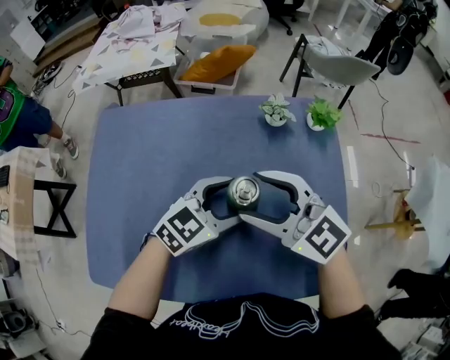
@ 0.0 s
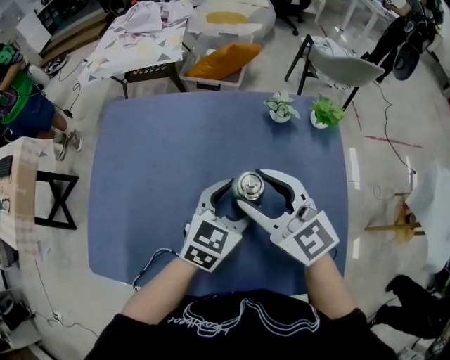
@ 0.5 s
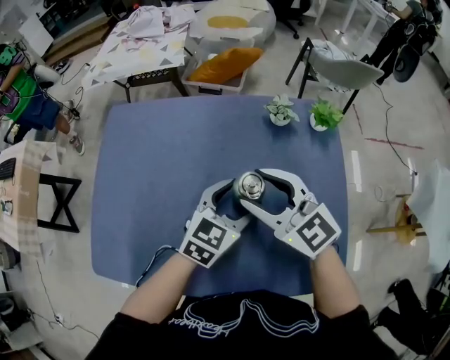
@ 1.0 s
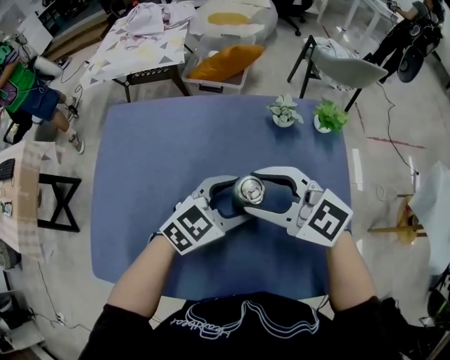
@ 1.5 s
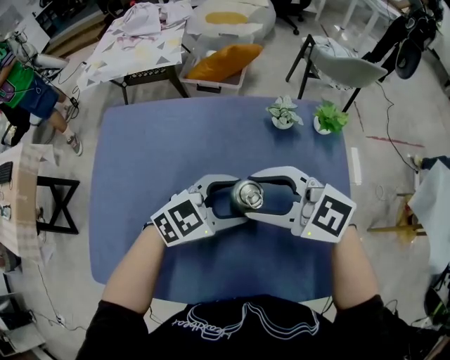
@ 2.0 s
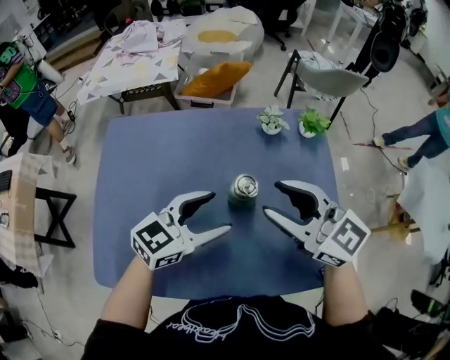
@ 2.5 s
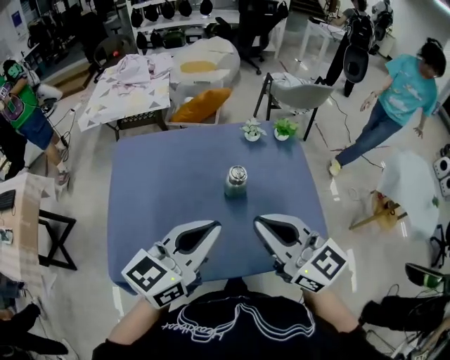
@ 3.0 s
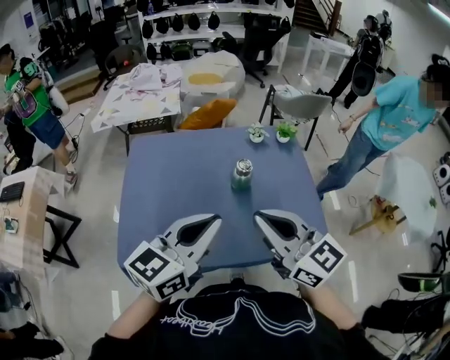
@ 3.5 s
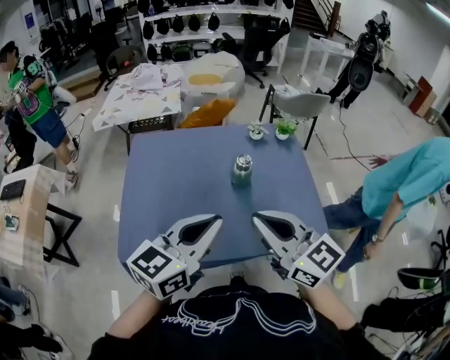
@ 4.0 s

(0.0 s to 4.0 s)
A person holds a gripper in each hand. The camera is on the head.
2.0 s - 4.0 s: The left gripper ends up roughly 35 cm from where it was, changes its angle by approximately 40 degrees, and closes up; the right gripper shifts by about 30 cm, rotates approximately 40 degrees, and closes its fingers.

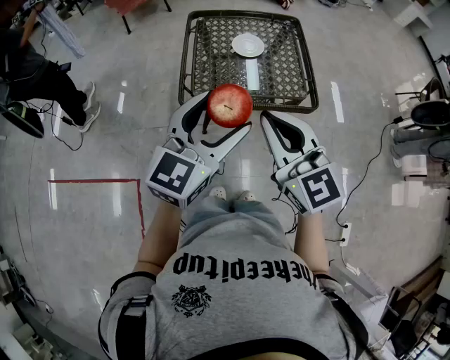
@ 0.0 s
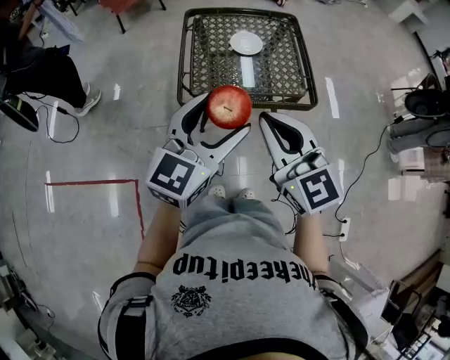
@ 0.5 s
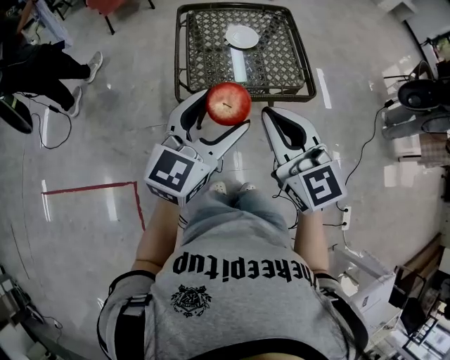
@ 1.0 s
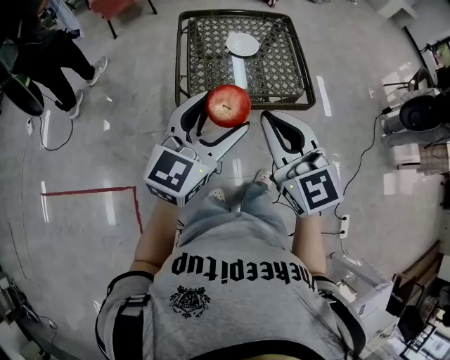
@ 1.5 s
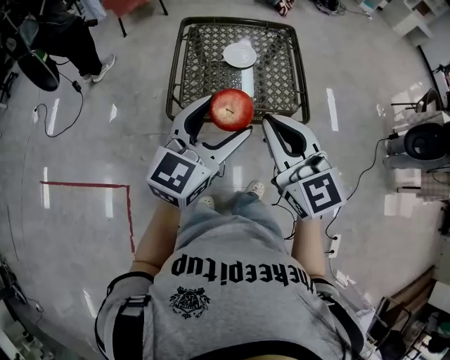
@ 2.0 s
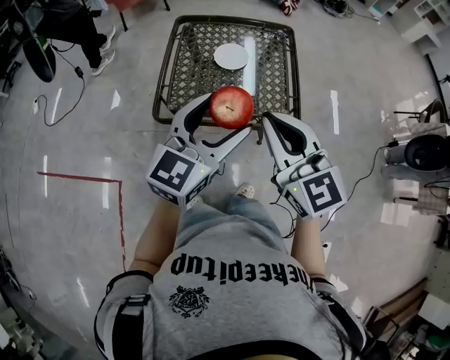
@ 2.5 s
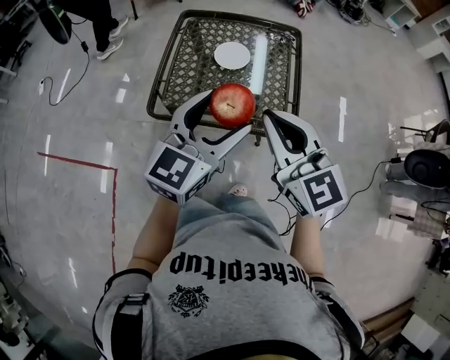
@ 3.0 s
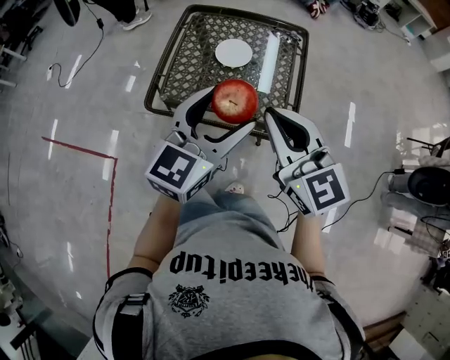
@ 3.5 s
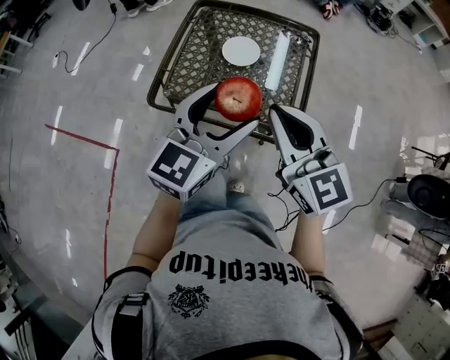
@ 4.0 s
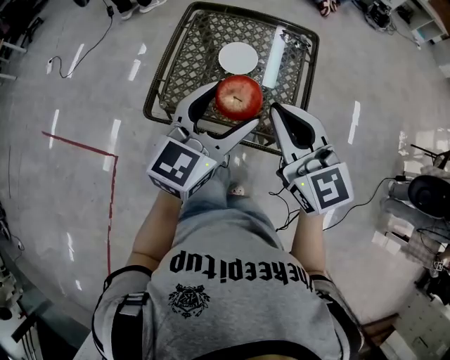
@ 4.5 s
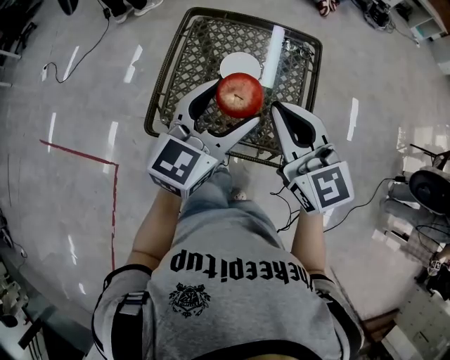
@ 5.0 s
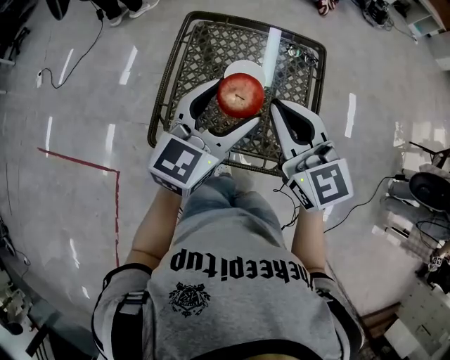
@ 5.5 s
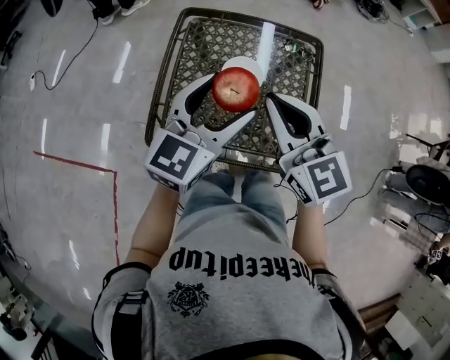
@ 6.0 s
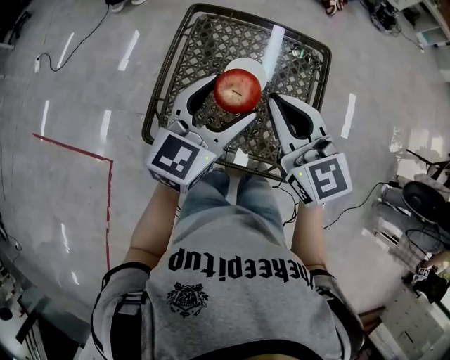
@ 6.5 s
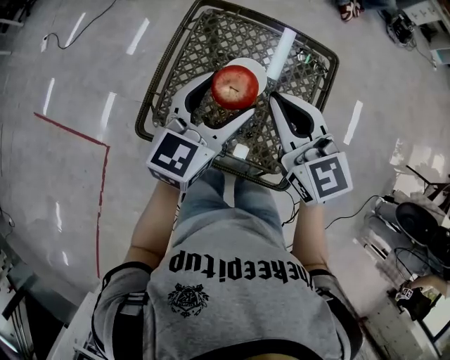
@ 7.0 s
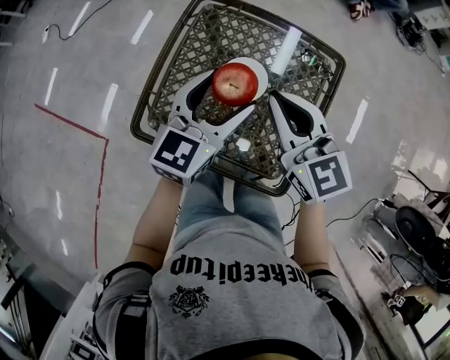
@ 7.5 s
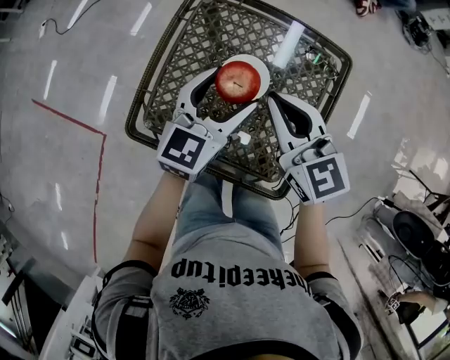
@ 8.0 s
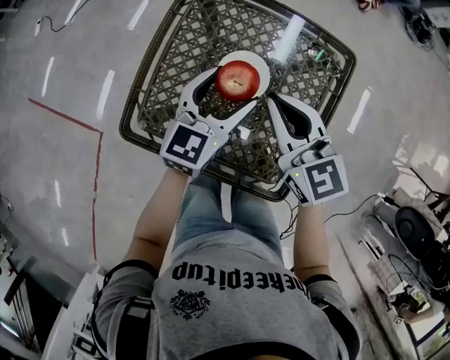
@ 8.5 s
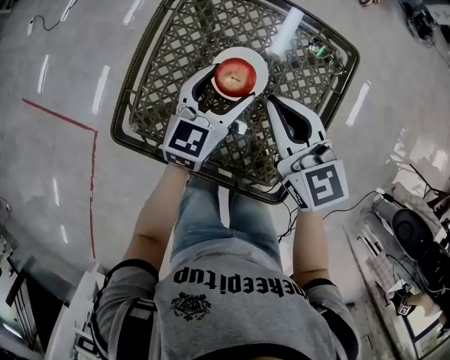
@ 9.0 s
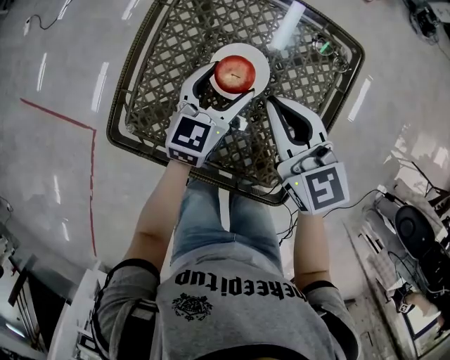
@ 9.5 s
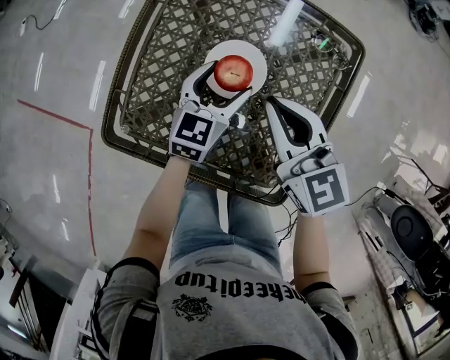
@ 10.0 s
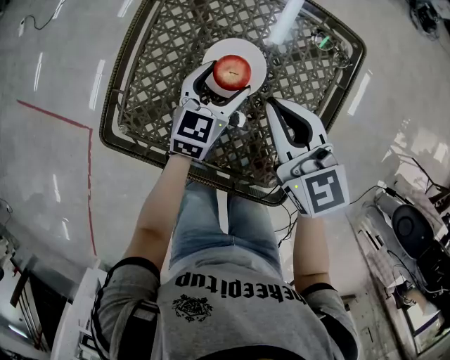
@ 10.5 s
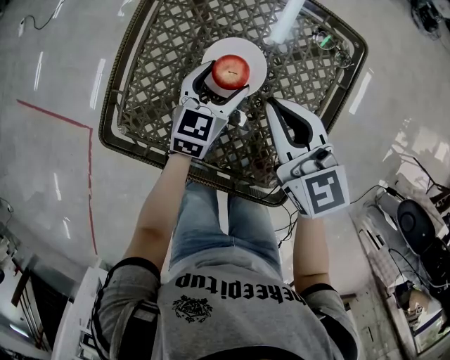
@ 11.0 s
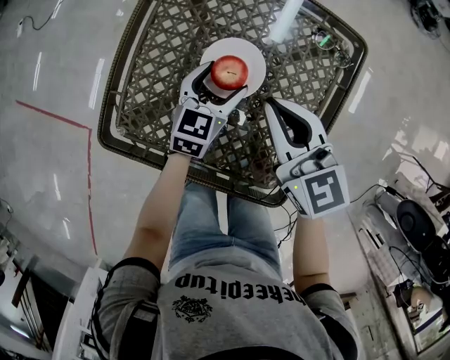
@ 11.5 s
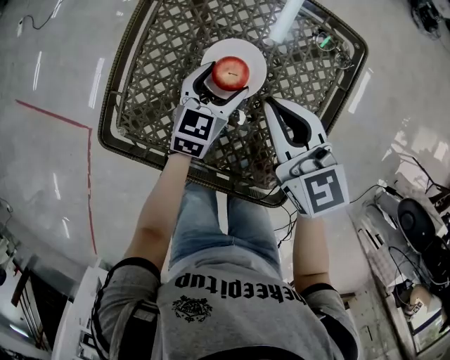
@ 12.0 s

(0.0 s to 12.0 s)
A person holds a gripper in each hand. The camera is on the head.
0.0 s - 2.0 s: The right gripper moves approximately 5 cm. Meanwhile the left gripper ends up roughly 5 cm from where it was.
2.0 s - 4.0 s: Both grippers travel together to the right and forward, some 20 cm.
4.0 s - 6.0 s: The left gripper is displaced forward by roughly 15 cm; the right gripper heads forward and to the left, covering some 20 cm.
6.0 s - 8.0 s: The right gripper moves forward and downward, approximately 15 cm; the left gripper travels downward and forward by approximately 15 cm.
8.0 s - 10.0 s: The left gripper heads downward, covering about 15 cm. Meanwhile the right gripper goes some 10 cm downward.
10.0 s - 12.0 s: The grippers make only small movements.

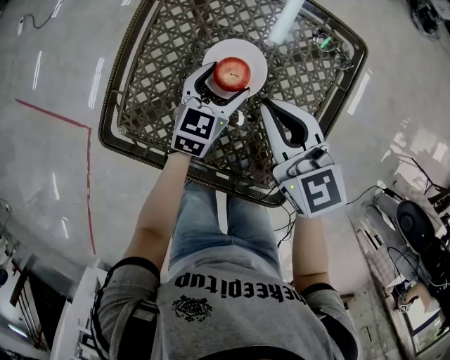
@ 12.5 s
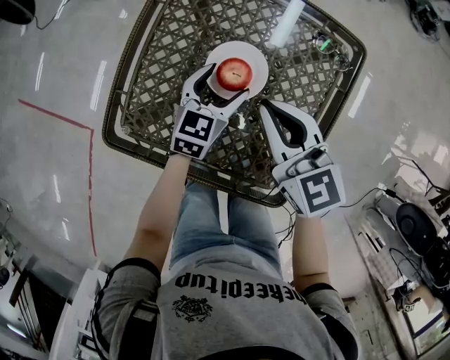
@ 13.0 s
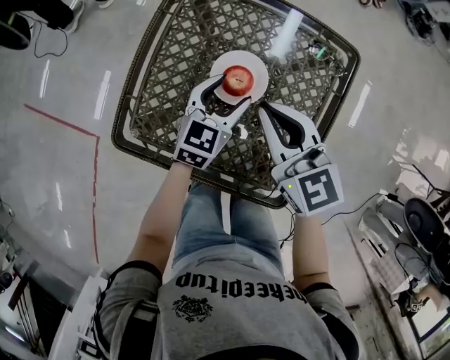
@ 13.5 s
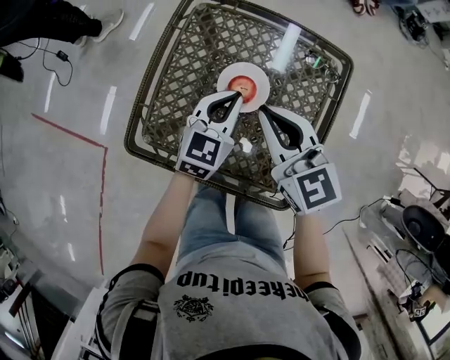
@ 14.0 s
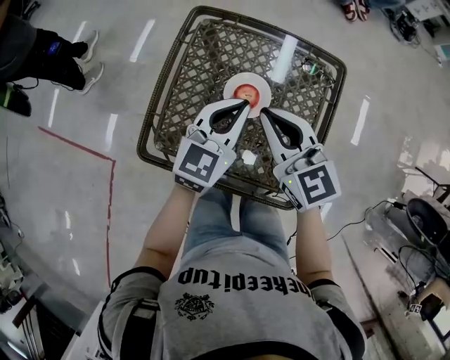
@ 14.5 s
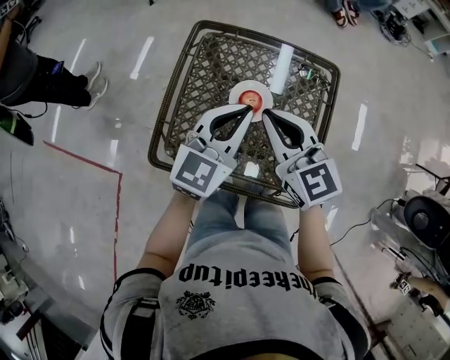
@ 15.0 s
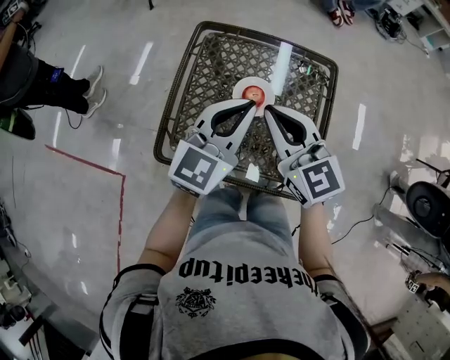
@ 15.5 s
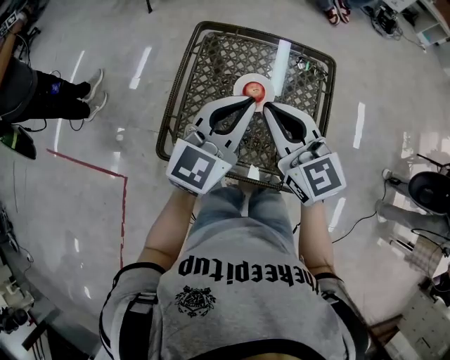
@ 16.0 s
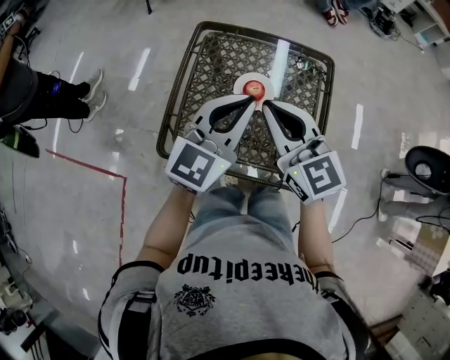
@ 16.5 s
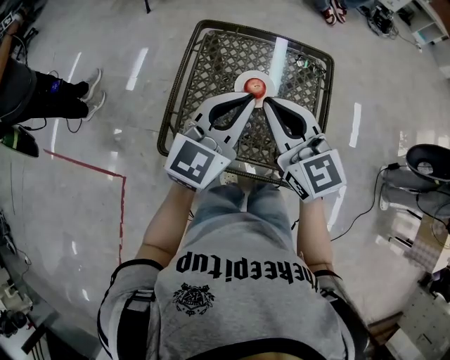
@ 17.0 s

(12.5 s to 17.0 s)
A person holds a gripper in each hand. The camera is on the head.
12.5 s - 14.5 s: The right gripper moves upward, about 10 cm. Meanwhile the left gripper heads upward, covering about 20 cm, and closes.
14.5 s - 17.0 s: Both grippers move upward and backward, some 15 cm.

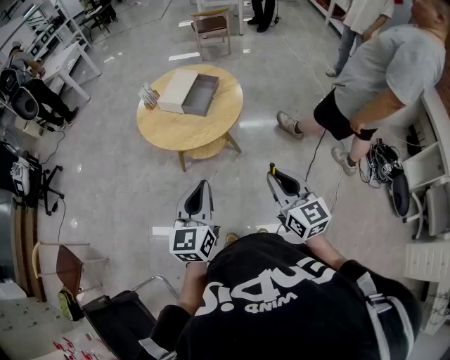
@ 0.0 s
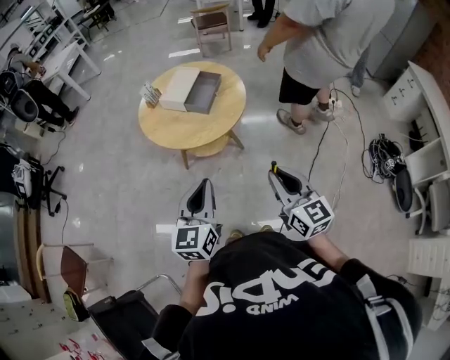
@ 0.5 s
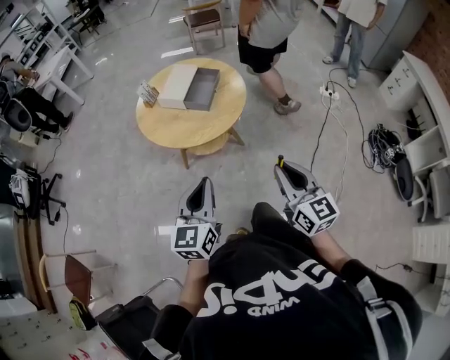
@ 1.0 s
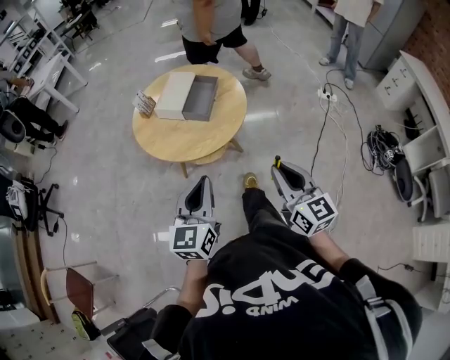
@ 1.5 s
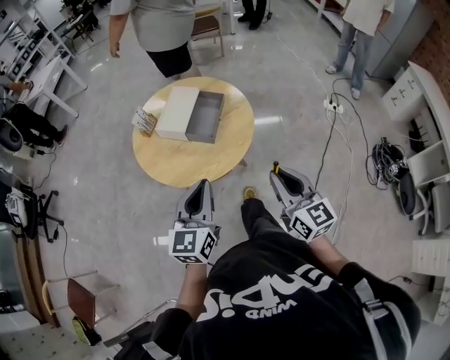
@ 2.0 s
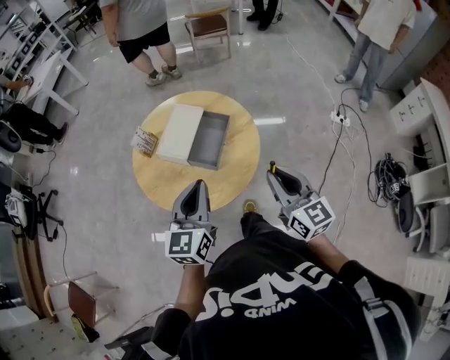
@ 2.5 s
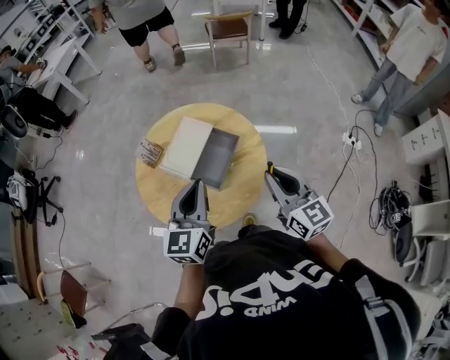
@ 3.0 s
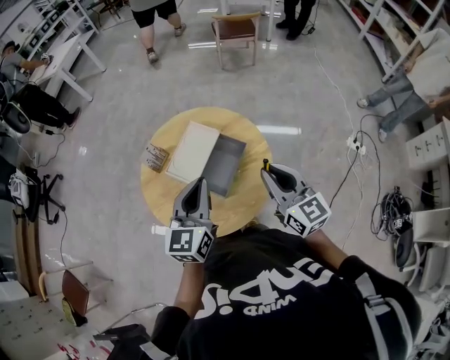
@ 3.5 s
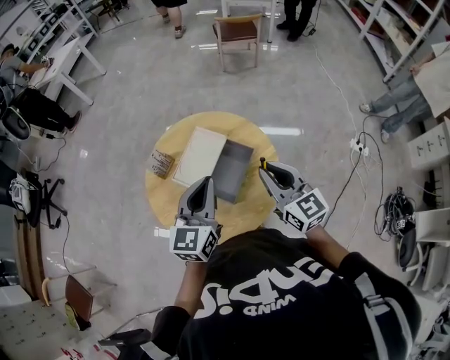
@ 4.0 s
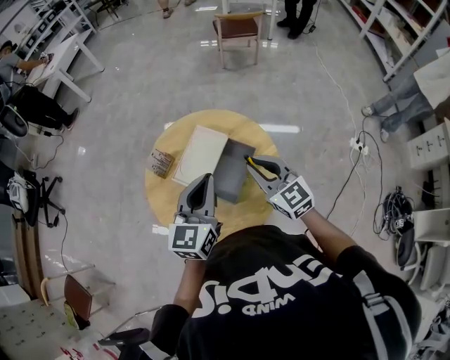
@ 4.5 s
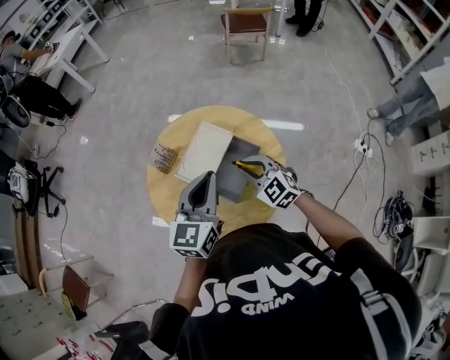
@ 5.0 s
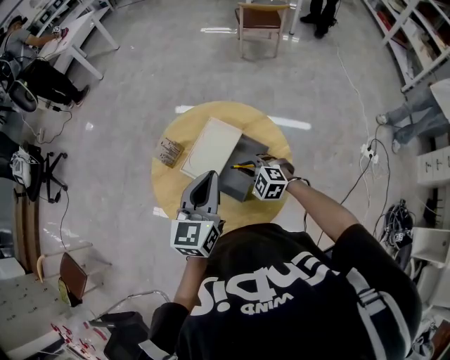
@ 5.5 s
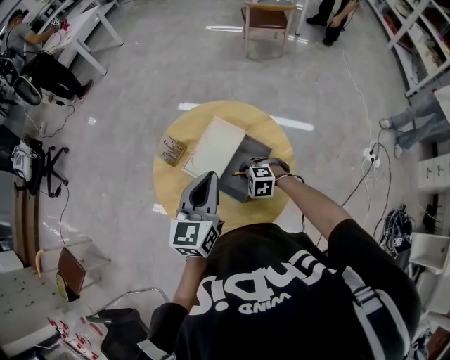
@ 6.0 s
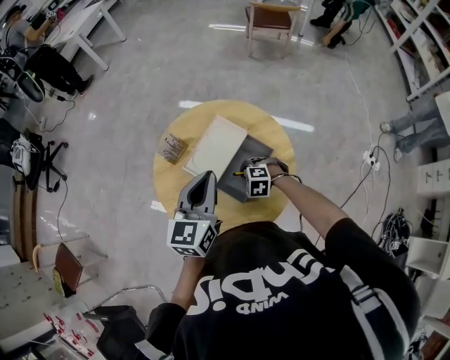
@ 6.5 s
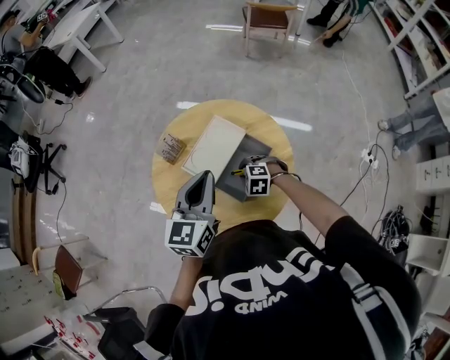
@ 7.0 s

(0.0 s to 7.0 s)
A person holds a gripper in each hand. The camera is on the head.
0.0 s - 2.0 s: Both grippers move forward, roughly 20 cm.
2.0 s - 3.5 s: Both grippers move forward, roughly 30 cm.
3.5 s - 5.0 s: The right gripper is displaced downward, to the left and forward by roughly 20 cm, and rotates some 40 degrees. The left gripper shifts approximately 5 cm forward.
5.0 s - 7.0 s: The right gripper heads downward, covering some 15 cm, and angles its fingers downward, by some 40 degrees.
